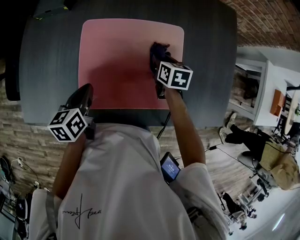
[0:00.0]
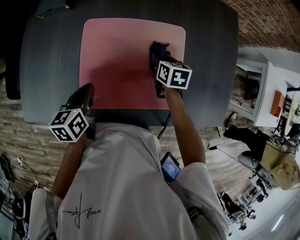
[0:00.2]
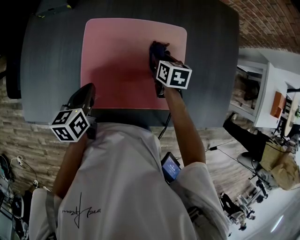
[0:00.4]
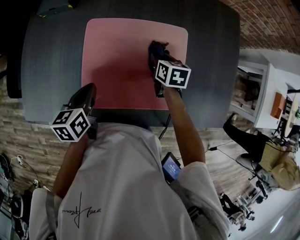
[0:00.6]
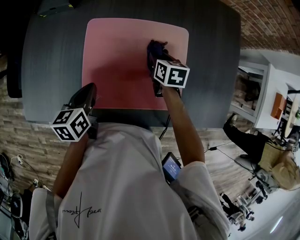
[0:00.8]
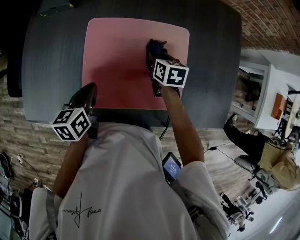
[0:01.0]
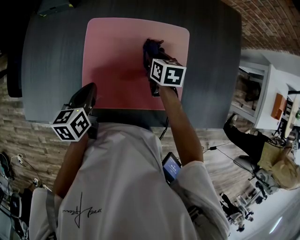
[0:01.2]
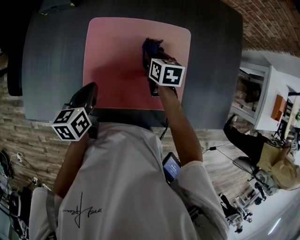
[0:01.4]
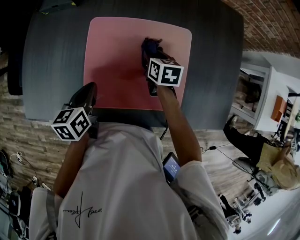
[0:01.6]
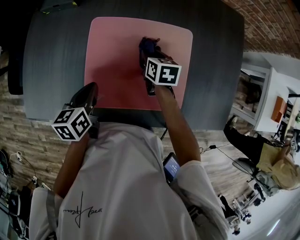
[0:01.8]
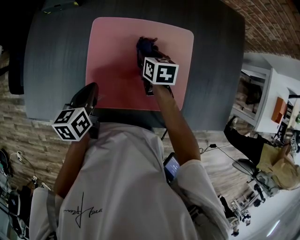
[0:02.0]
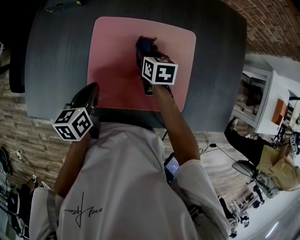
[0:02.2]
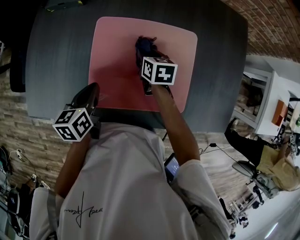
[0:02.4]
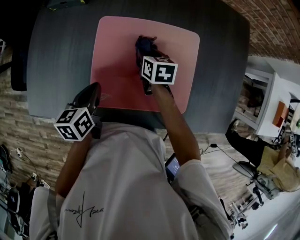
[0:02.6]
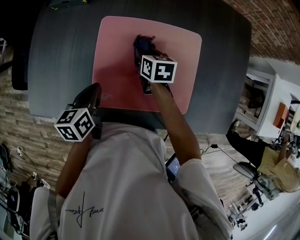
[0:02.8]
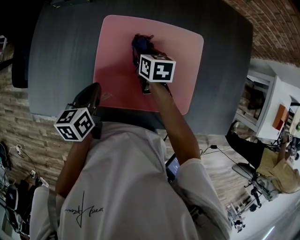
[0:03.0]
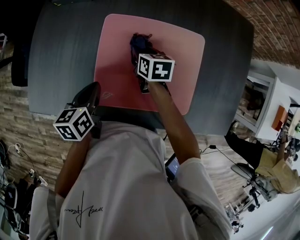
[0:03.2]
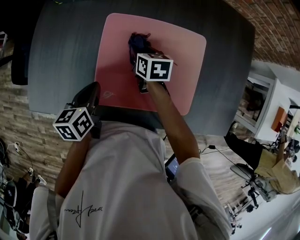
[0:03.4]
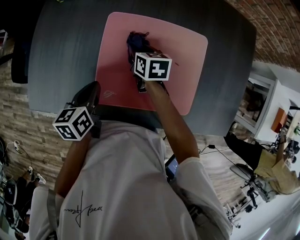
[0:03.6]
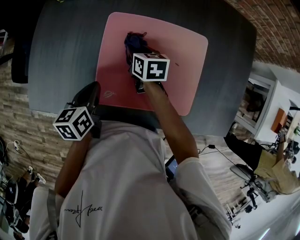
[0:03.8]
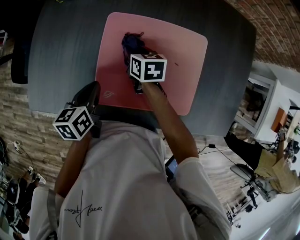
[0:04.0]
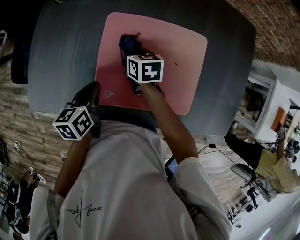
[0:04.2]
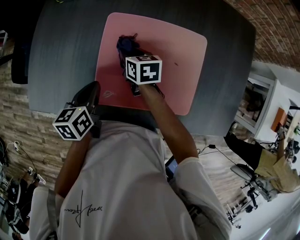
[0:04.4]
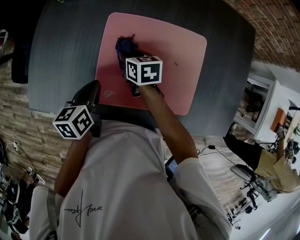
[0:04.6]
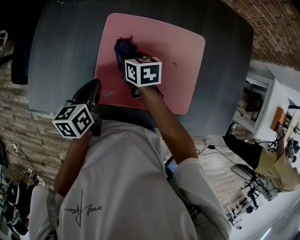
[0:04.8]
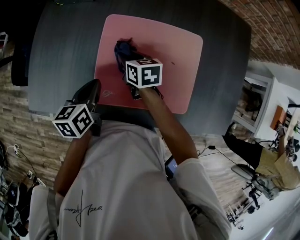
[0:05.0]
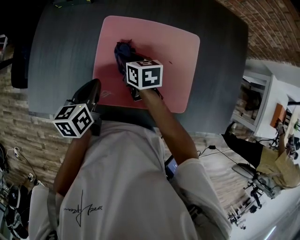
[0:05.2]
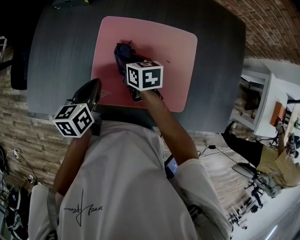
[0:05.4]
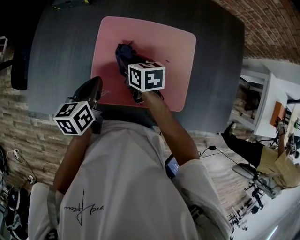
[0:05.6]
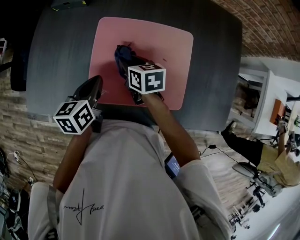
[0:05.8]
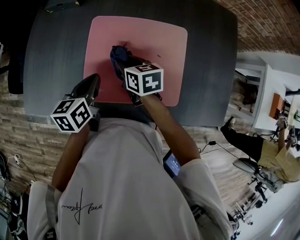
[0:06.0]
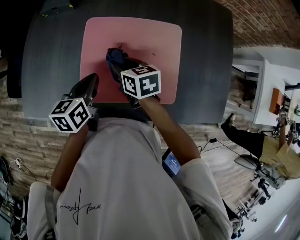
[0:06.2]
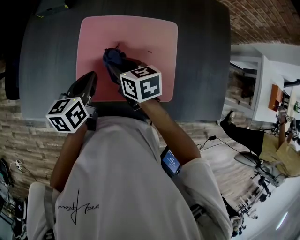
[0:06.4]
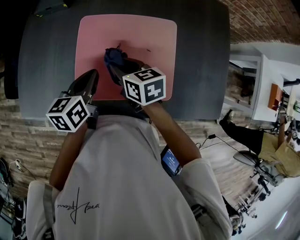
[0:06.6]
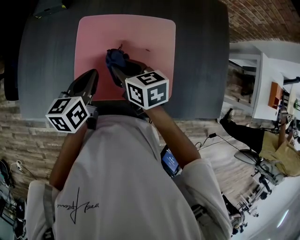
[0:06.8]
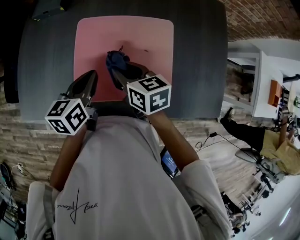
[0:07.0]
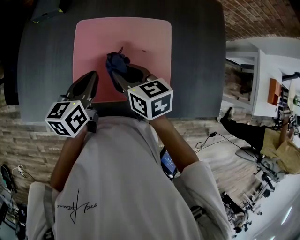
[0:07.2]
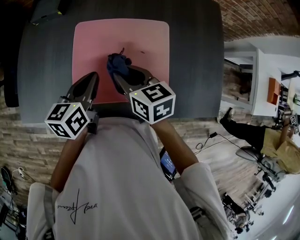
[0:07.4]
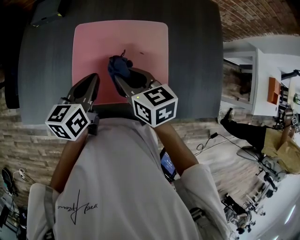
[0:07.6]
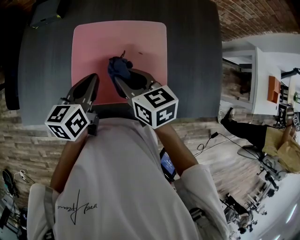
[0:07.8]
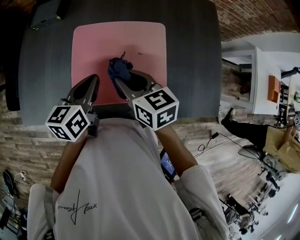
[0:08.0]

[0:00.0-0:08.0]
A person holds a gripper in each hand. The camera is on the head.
0:00.0 to 0:01.6: The right gripper shifts about 5 cm to the left.
0:01.6 to 0:03.2: The right gripper is displaced to the left by about 10 cm.
0:03.2 to 0:04.8: The right gripper heads to the left, covering some 5 cm.
0:04.8 to 0:06.4: The right gripper is displaced backward, upward and to the right by some 15 cm. The left gripper travels to the right by about 10 cm.
0:06.4 to 0:08.0: The right gripper is displaced upward, backward and to the right by about 10 cm. The left gripper shifts by approximately 5 cm.

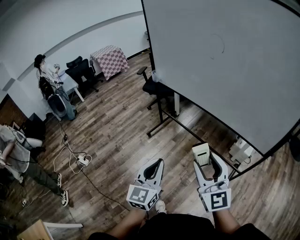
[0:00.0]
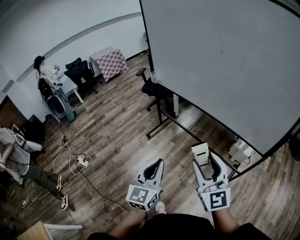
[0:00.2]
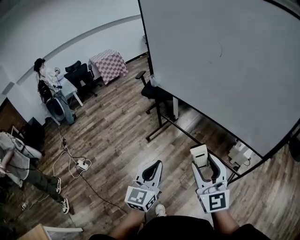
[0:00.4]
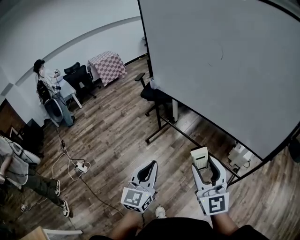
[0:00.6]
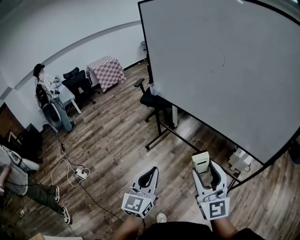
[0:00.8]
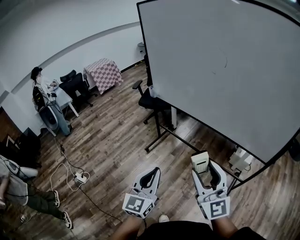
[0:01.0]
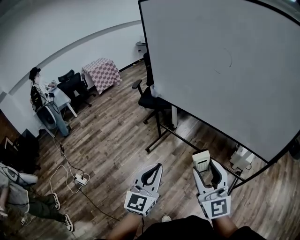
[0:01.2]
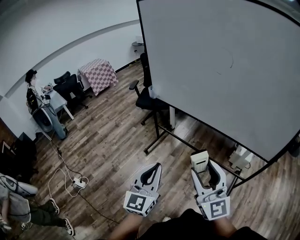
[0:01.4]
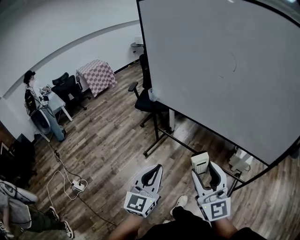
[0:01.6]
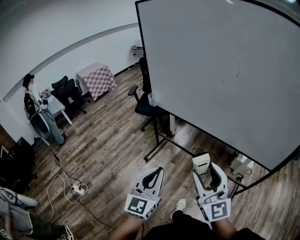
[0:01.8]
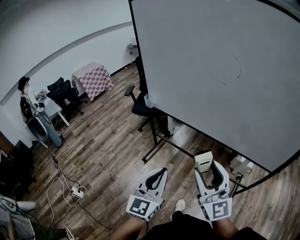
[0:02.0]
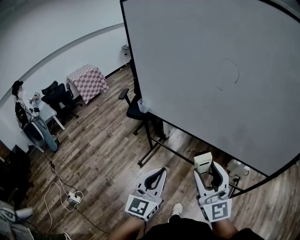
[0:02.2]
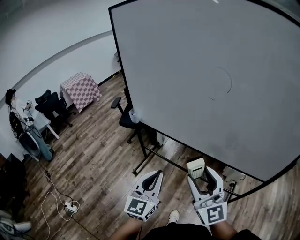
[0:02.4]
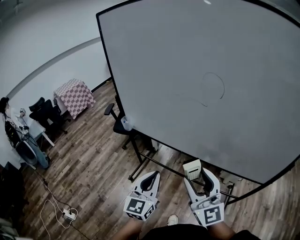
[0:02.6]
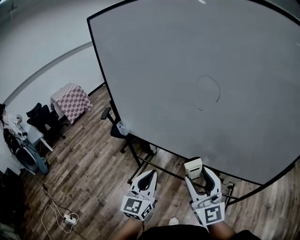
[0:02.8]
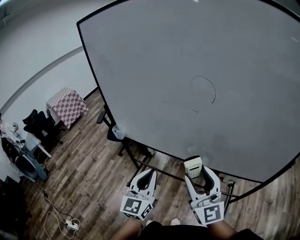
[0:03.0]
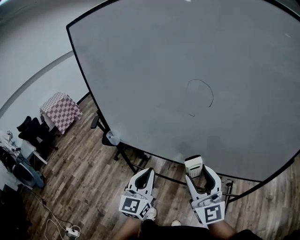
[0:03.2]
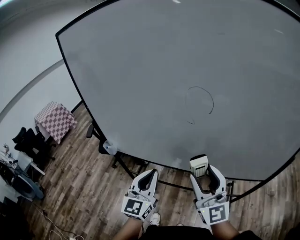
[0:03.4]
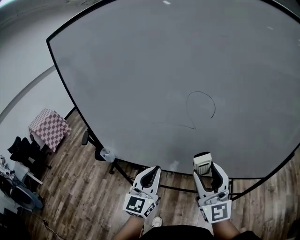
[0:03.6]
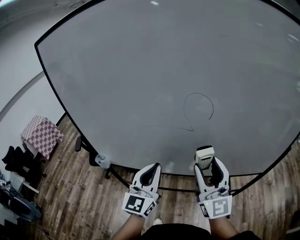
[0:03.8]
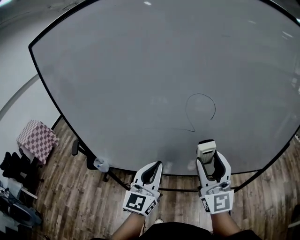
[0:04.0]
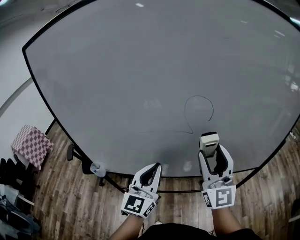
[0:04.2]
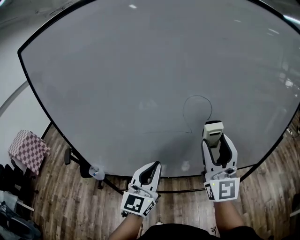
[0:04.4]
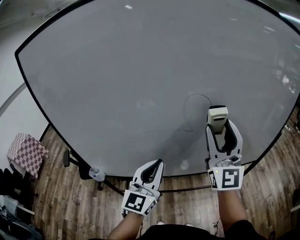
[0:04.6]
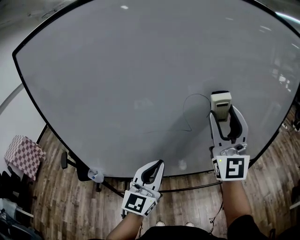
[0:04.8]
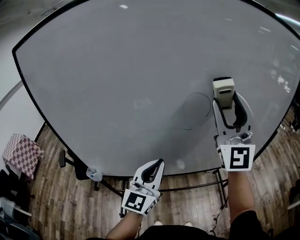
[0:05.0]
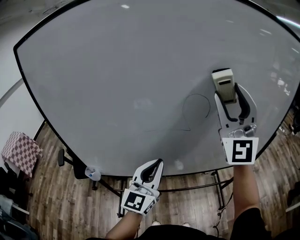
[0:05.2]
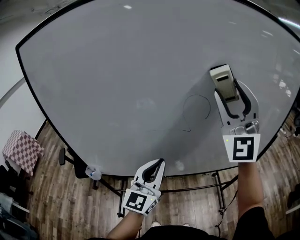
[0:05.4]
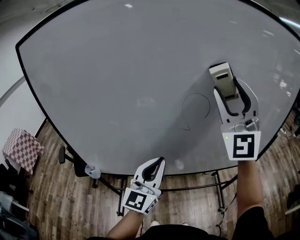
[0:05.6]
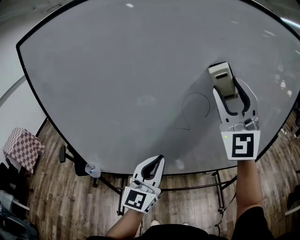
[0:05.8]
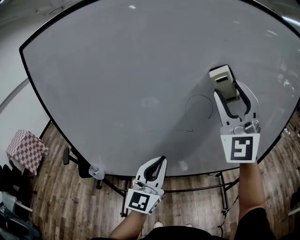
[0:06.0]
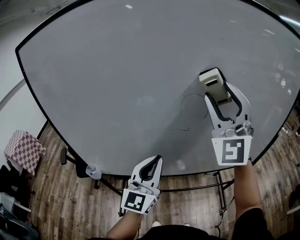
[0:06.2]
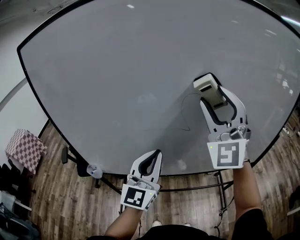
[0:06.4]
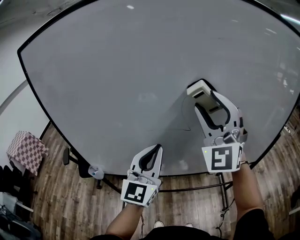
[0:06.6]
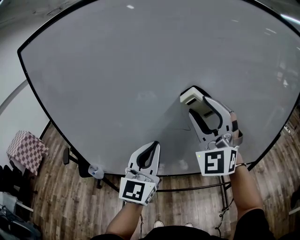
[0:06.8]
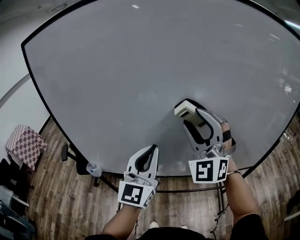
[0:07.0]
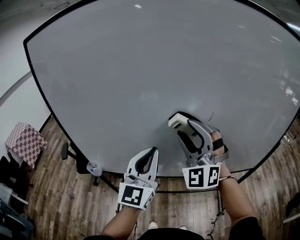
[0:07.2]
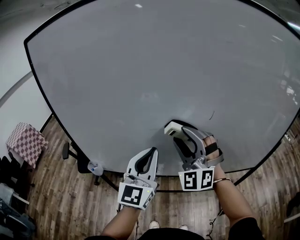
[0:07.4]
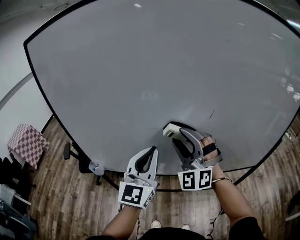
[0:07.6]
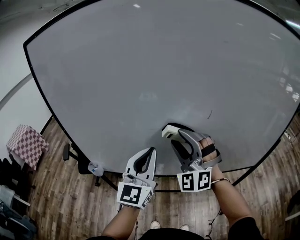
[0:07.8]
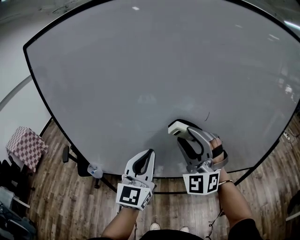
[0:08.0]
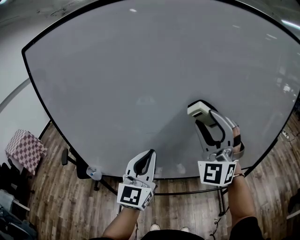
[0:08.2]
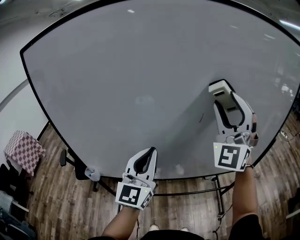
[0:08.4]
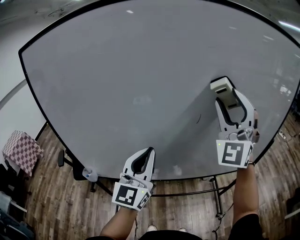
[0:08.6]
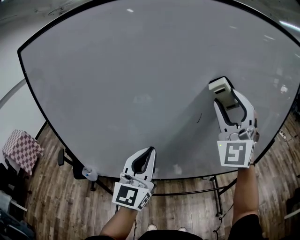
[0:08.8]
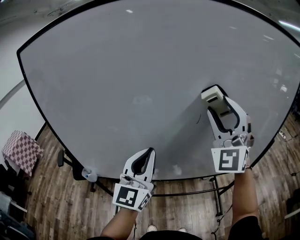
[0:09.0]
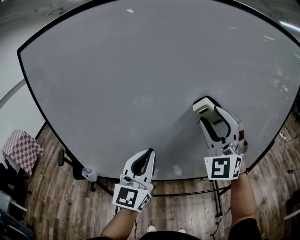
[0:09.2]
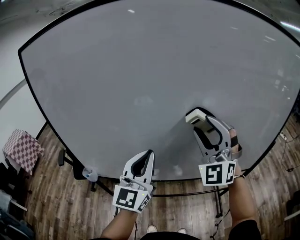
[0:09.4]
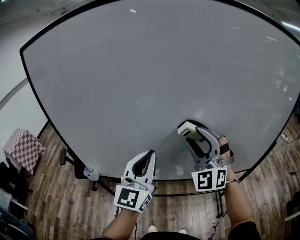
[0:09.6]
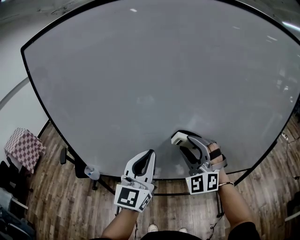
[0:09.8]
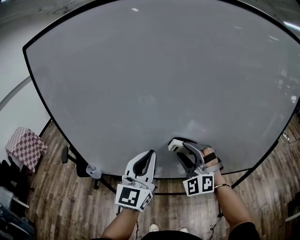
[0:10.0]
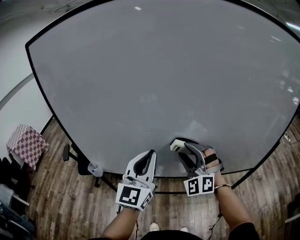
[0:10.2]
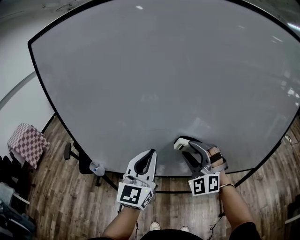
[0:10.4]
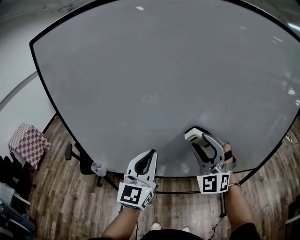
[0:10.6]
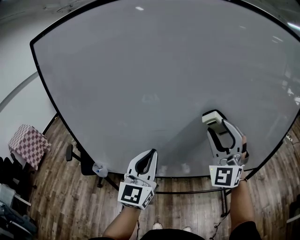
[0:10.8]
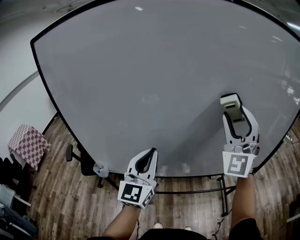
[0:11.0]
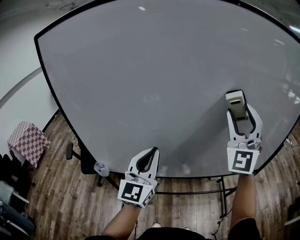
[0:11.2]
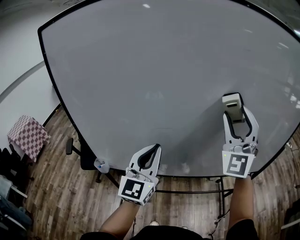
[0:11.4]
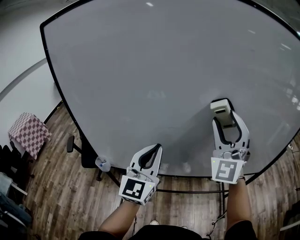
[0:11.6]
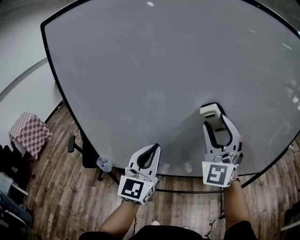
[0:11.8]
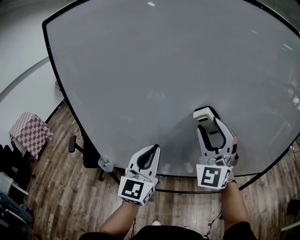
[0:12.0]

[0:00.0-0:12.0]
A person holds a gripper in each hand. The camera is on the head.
0:00.0 to 0:01.6: The right gripper travels to the left and forward by approximately 15 cm. The left gripper travels forward and to the left by about 15 cm.
0:01.6 to 0:03.0: Both grippers travel together forward, approximately 25 cm.
0:03.0 to 0:04.4: The right gripper shifts by about 20 cm, and rotates roughly 40 degrees; the left gripper moves about 20 cm, and rotates approximately 30 degrees.
0:04.4 to 0:06.0: The right gripper travels upward by approximately 15 cm, and turns by about 40 degrees.
0:06.0 to 0:07.6: The right gripper goes about 25 cm downward and to the left, and changes its angle by some 30 degrees.
0:07.6 to 0:09.0: The right gripper is displaced upward and to the right by roughly 20 cm.
0:09.0 to 0:10.4: The right gripper moves downward and to the left, approximately 25 cm, and changes its angle by about 30 degrees. The left gripper moves about 5 cm.
0:10.4 to 0:12.0: The left gripper is displaced to the left by approximately 5 cm; the right gripper is displaced upward by about 15 cm, and swivels about 30 degrees.

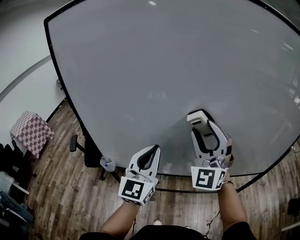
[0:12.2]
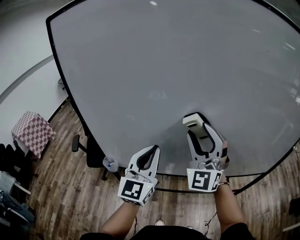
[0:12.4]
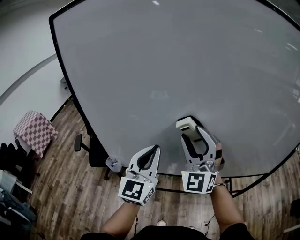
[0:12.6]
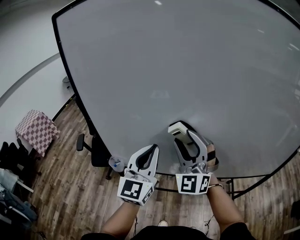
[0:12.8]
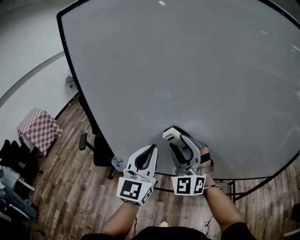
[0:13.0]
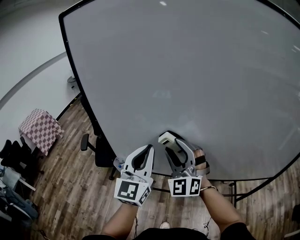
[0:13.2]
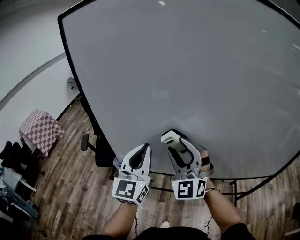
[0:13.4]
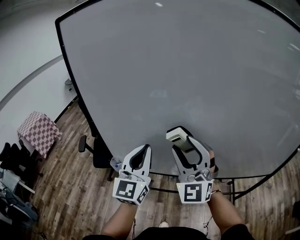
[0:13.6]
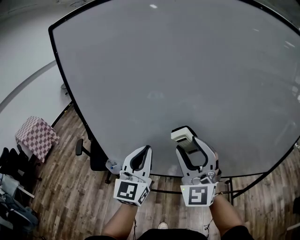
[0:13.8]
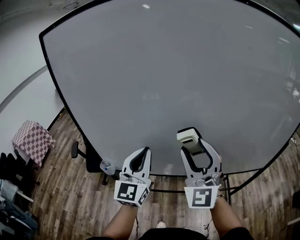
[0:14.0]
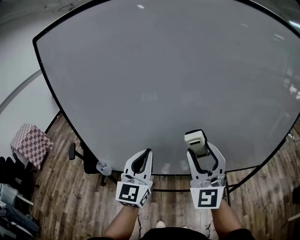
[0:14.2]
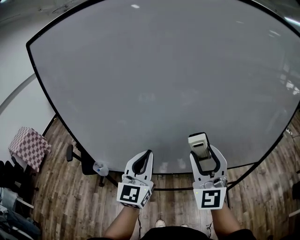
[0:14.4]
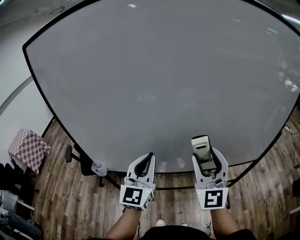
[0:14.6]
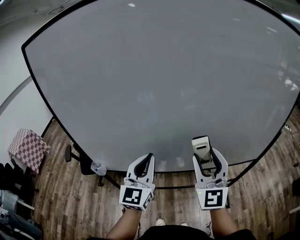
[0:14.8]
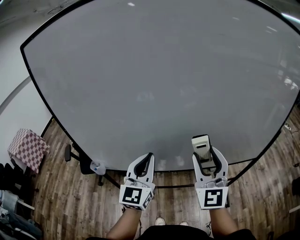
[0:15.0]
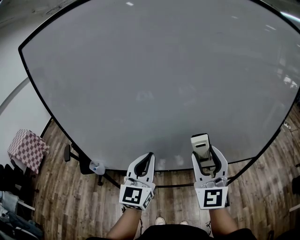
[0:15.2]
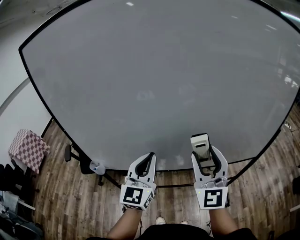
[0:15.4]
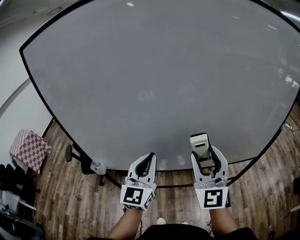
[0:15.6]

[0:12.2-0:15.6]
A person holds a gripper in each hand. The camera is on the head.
0:12.2 to 0:13.8: The right gripper moves some 15 cm to the left and comes back.
0:13.8 to 0:15.6: The grippers both shift to the right by approximately 15 cm. The right gripper changes its angle by approximately 20 degrees.
